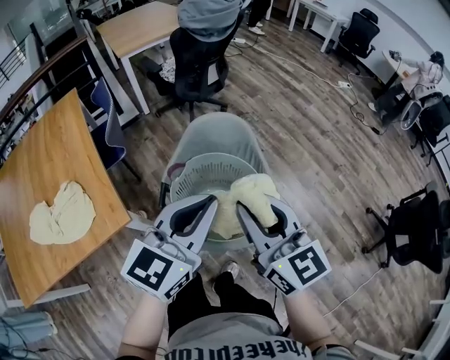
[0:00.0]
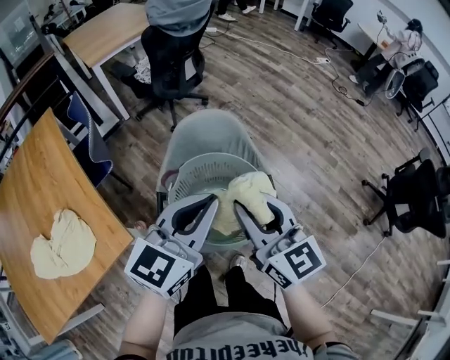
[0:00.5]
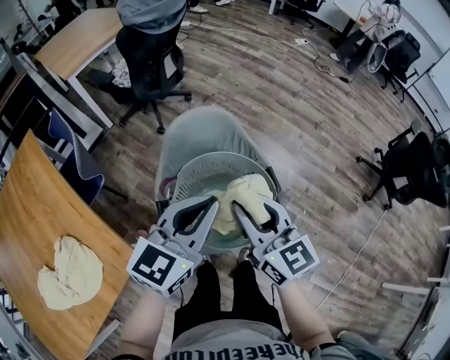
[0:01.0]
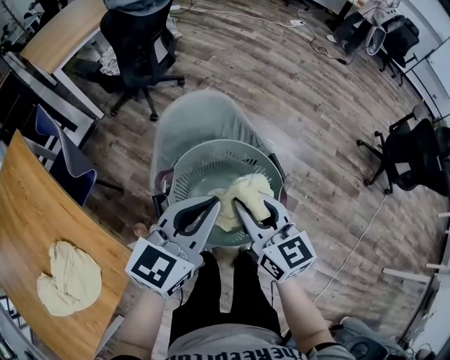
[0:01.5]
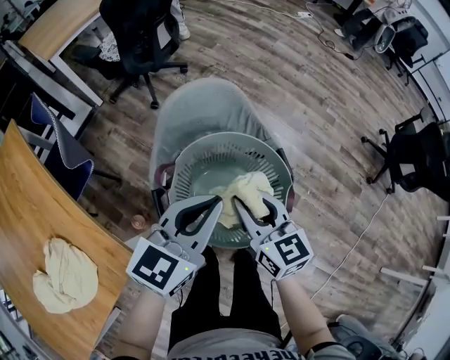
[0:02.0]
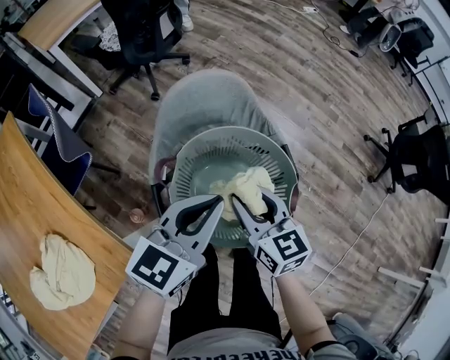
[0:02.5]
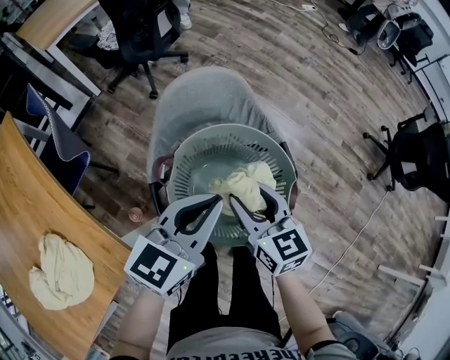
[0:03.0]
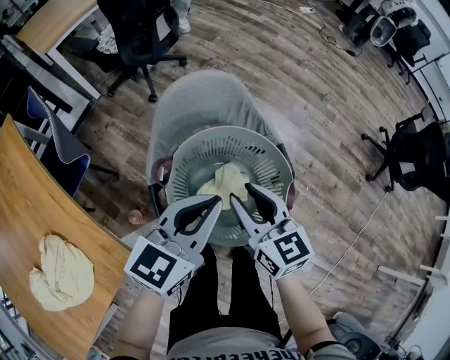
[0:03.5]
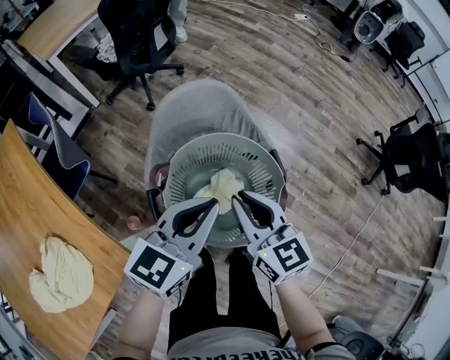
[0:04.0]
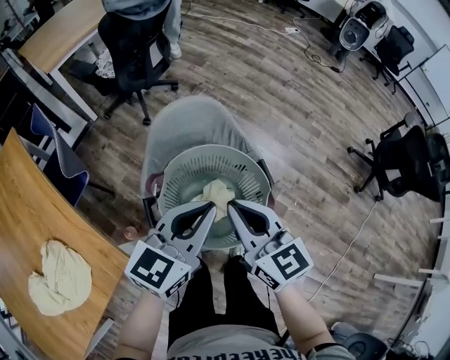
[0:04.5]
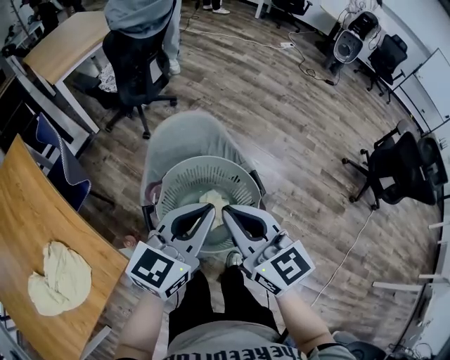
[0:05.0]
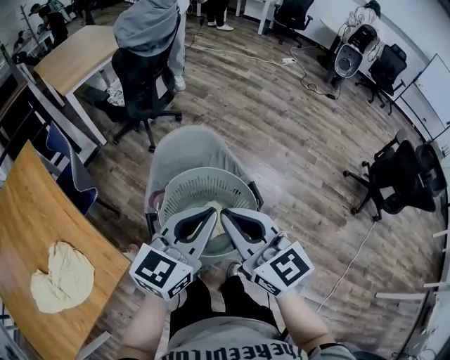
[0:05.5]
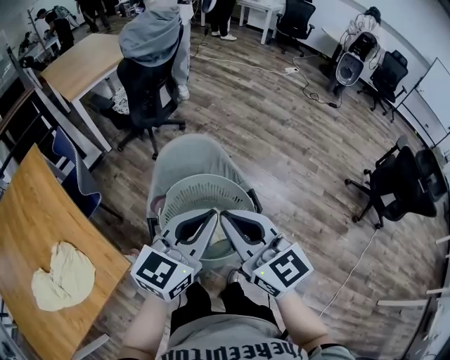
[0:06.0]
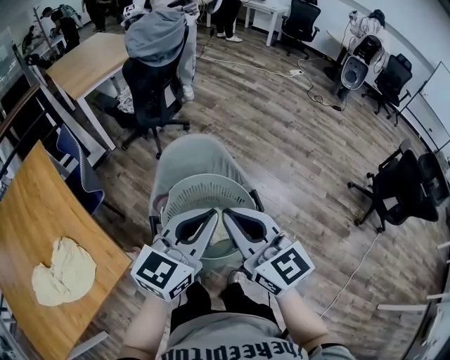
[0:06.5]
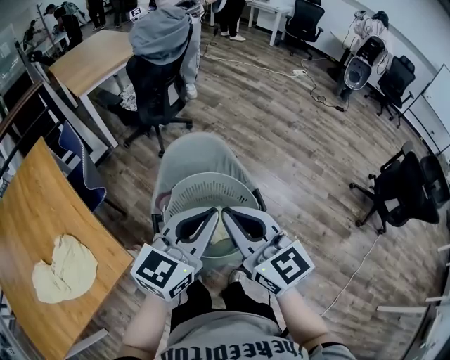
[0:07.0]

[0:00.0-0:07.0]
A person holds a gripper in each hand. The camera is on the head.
0:00.0 to 0:02.0: The right gripper heads downward, covering about 20 cm, and rotates about 30 degrees; the left gripper shifts approximately 15 cm downward and forward, and swivels about 30 degrees.
0:02.0 to 0:03.5: The grippers make only small movements.
0:03.5 to 0:05.0: The left gripper travels upward by approximately 10 cm. The right gripper moves upward, about 15 cm, and closes its fingers.
0:05.0 to 0:07.0: The two grippers go roughly 5 cm upward.

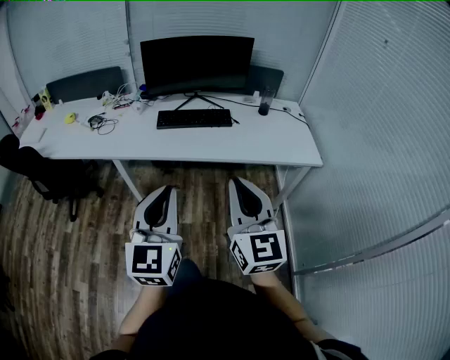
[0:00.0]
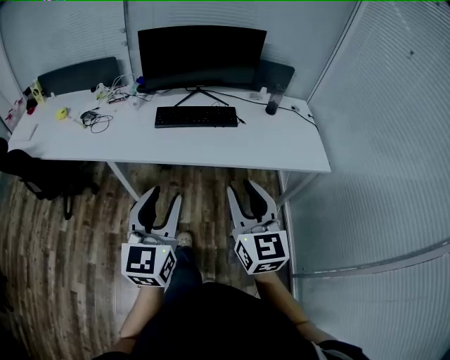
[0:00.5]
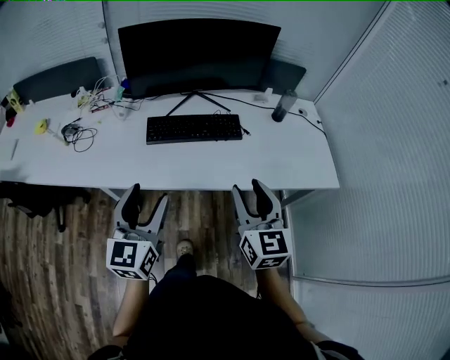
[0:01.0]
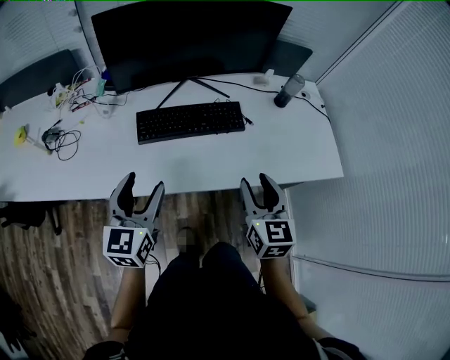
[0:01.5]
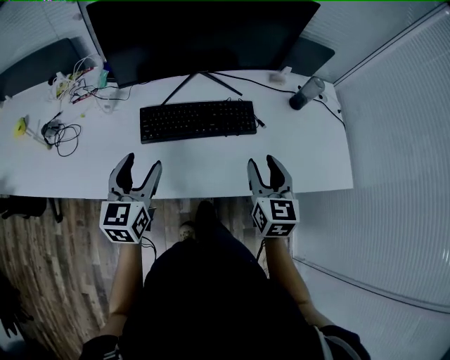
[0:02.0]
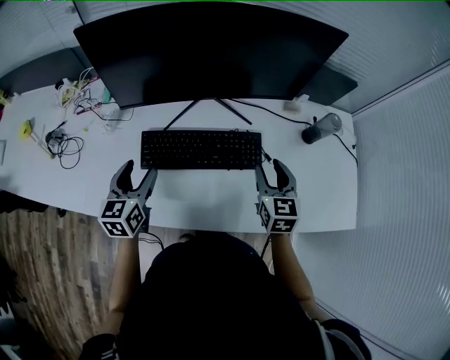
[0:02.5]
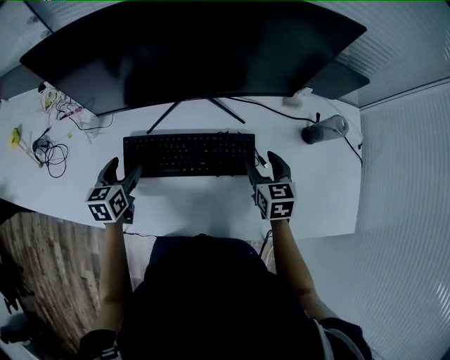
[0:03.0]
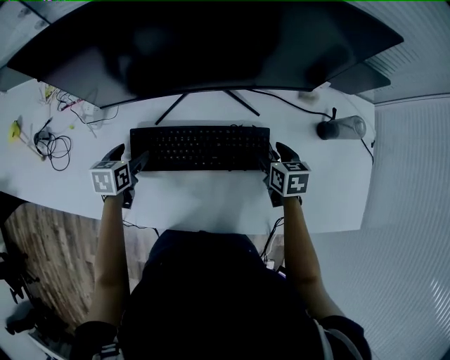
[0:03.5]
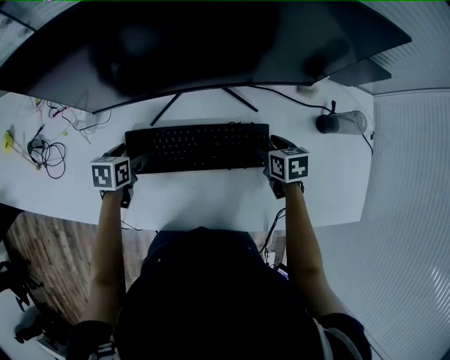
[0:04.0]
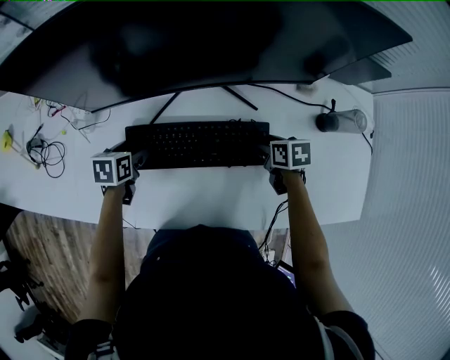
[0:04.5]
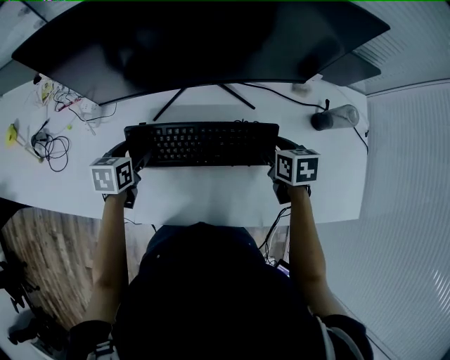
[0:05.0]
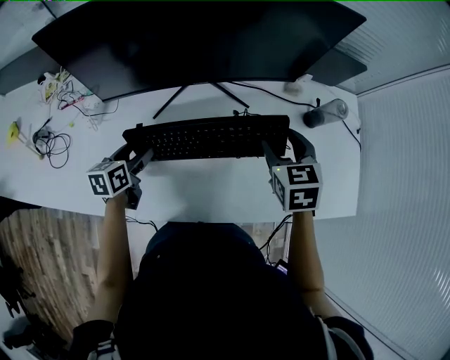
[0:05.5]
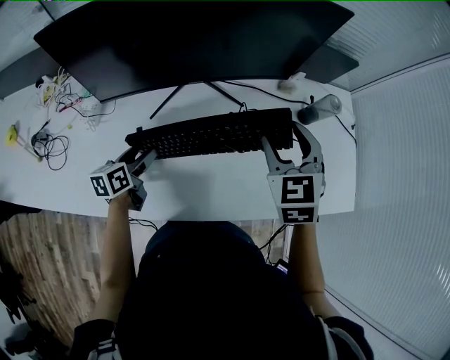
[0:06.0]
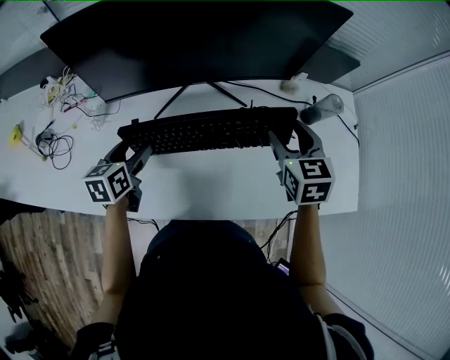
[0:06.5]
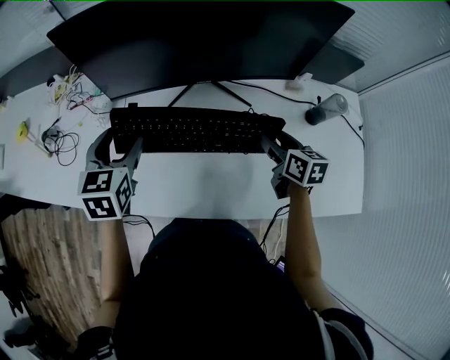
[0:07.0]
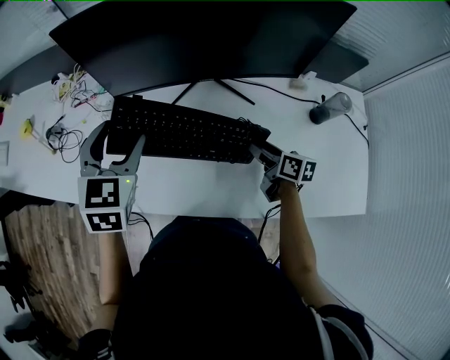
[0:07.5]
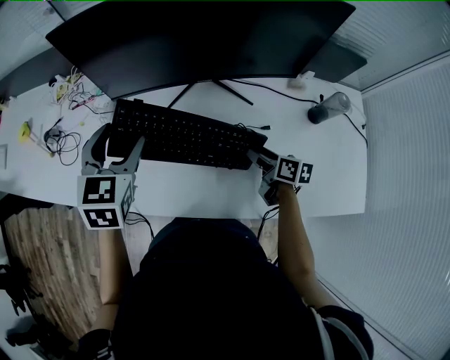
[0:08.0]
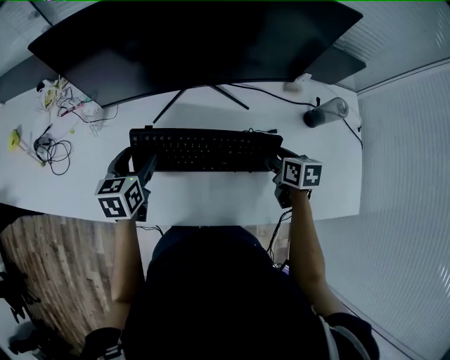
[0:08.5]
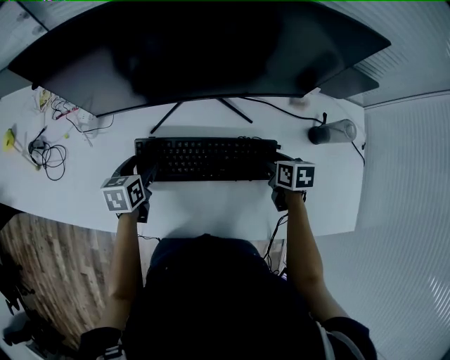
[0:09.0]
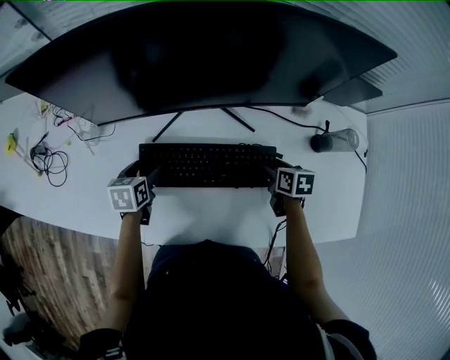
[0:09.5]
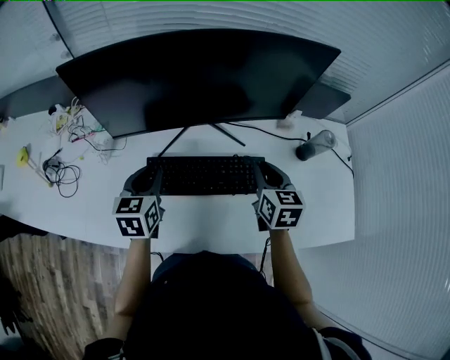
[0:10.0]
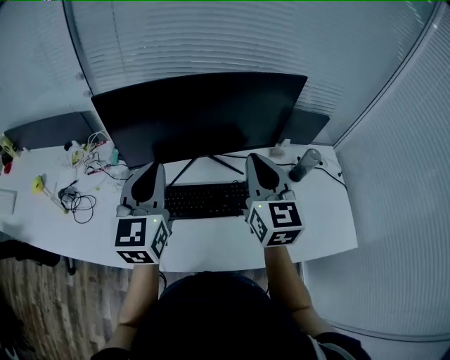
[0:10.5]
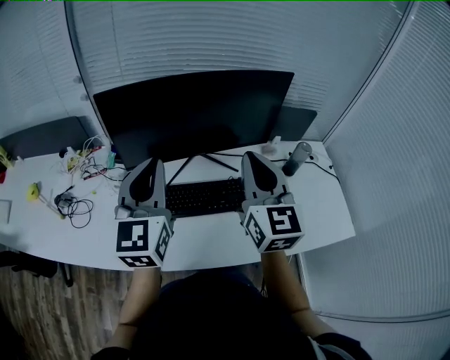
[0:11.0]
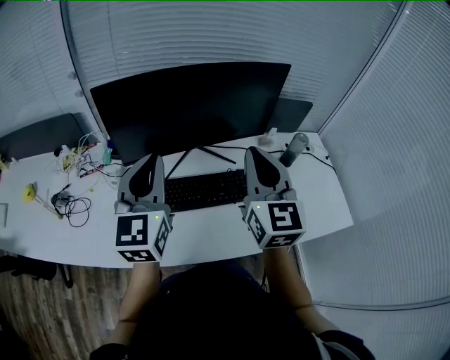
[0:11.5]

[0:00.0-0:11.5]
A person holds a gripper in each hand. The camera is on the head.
0:00.0 to 0:02.0: Both grippers are carried forward, about 50 cm. Both grippers travel together downward, roughly 20 cm. The left gripper swivels roughly 20 degrees, and opens; the right gripper changes its angle by roughly 30 degrees, and opens up.
0:02.0 to 0:04.0: The right gripper goes some 30 cm forward and downward, points its fingers about 40 degrees further downward, and opens up. The left gripper moves downward and forward, about 30 cm, and tips its fingers downward by approximately 40 degrees.
0:04.0 to 0:06.0: The right gripper heads upward, covering roughly 25 cm, and changes its angle by some 50 degrees. The left gripper goes approximately 10 cm upward and to the right, and turns by roughly 30 degrees.
0:06.0 to 0:07.5: The left gripper is displaced upward by about 20 cm, and rotates around the line of its fingers by about 50 degrees, clockwise from behind. The right gripper shifts roughly 20 cm downward, and twists about 60 degrees clockwise, seen from behind.
0:07.5 to 0:09.5: The right gripper travels downward and to the right by about 10 cm, and swivels roughly 30 degrees. Meanwhile the left gripper shifts about 30 cm downward, and rotates roughly 40 degrees.
0:09.5 to 0:11.5: The two grippers go some 40 cm upward. The left gripper angles its fingers upward, by approximately 50 degrees, and closes its fingers. Meanwhile the right gripper tips its fingers upward by about 60 degrees, and closes its fingers.

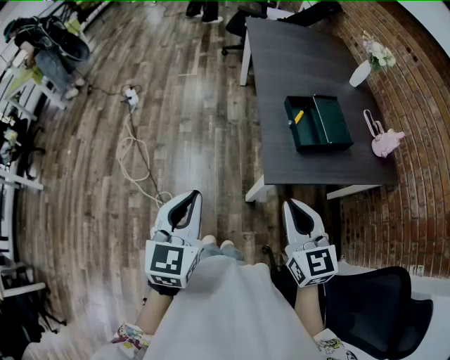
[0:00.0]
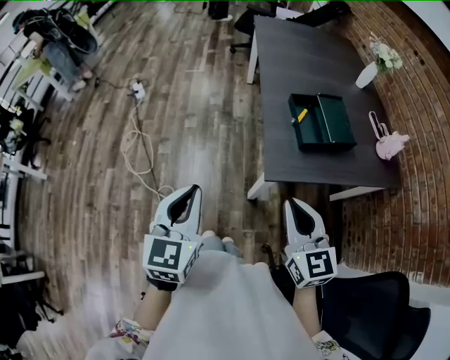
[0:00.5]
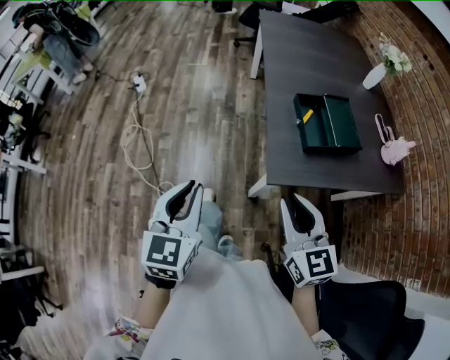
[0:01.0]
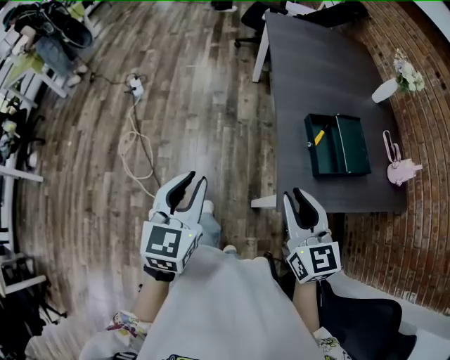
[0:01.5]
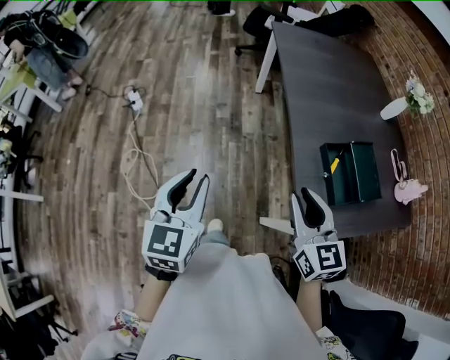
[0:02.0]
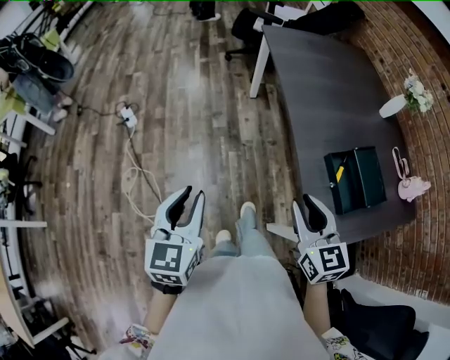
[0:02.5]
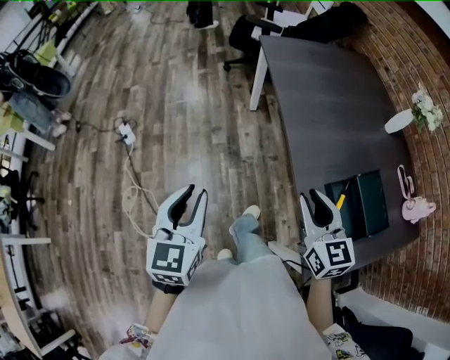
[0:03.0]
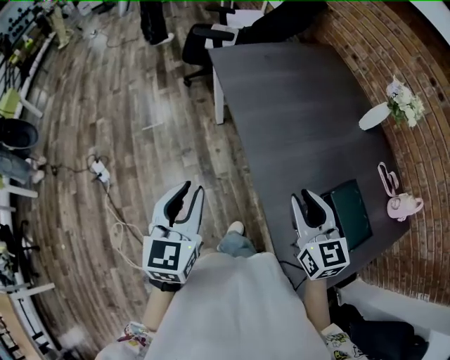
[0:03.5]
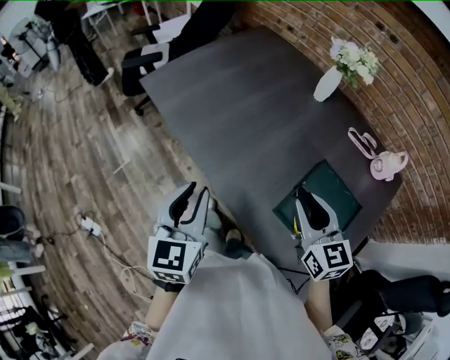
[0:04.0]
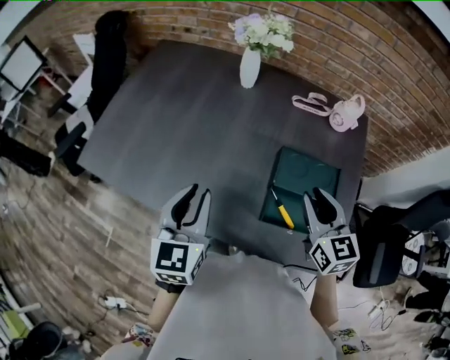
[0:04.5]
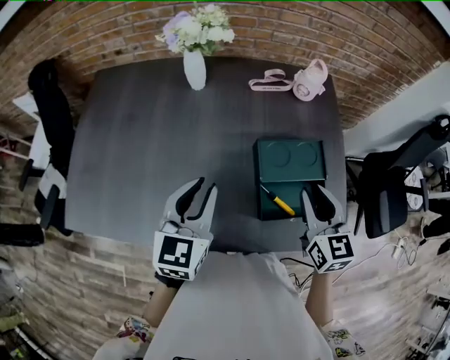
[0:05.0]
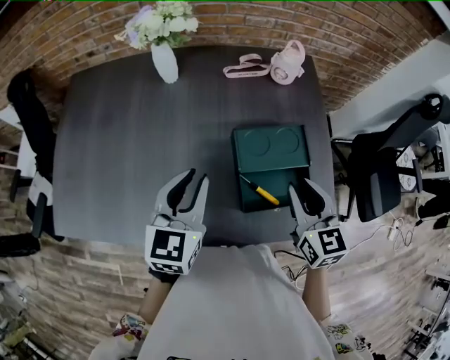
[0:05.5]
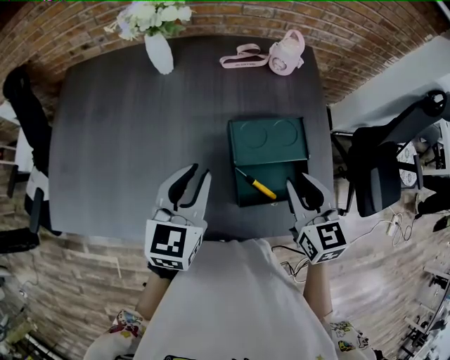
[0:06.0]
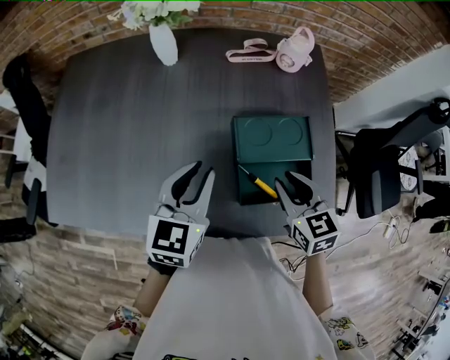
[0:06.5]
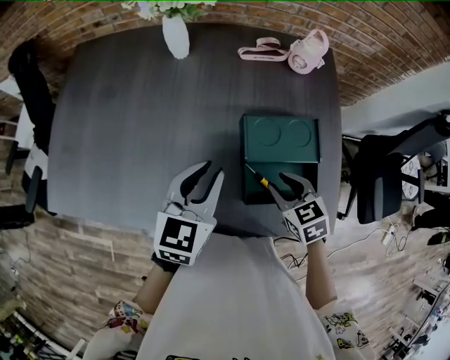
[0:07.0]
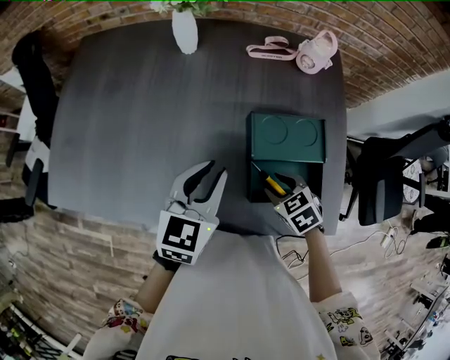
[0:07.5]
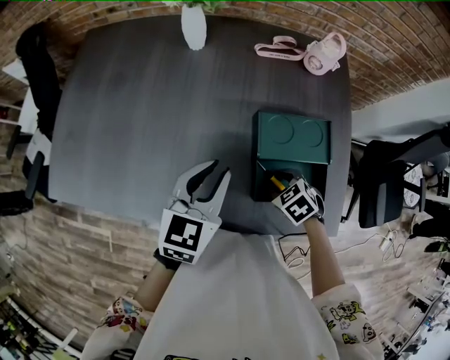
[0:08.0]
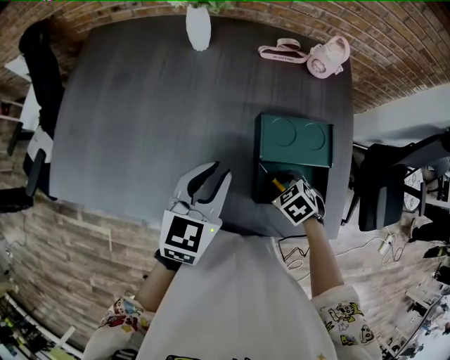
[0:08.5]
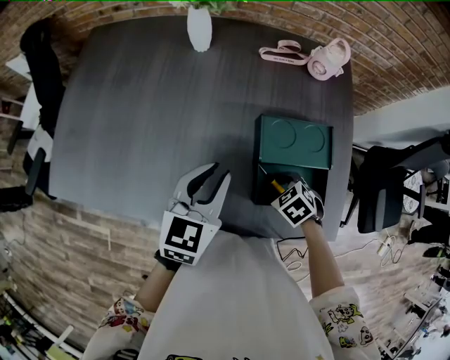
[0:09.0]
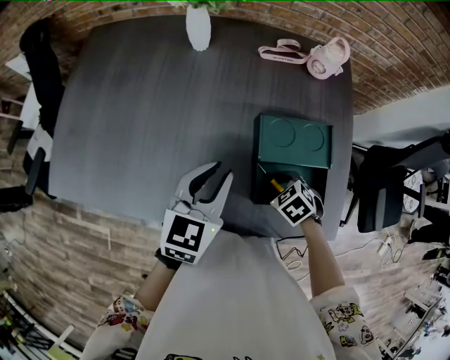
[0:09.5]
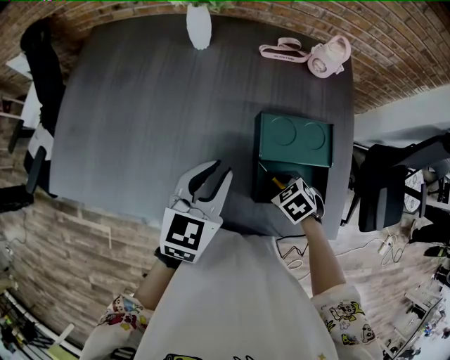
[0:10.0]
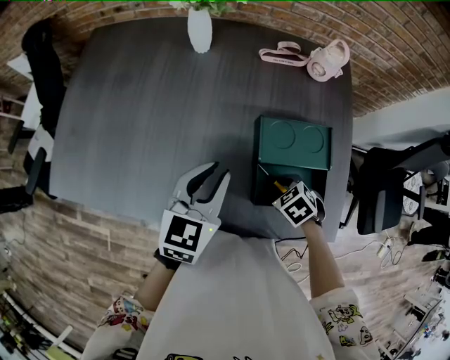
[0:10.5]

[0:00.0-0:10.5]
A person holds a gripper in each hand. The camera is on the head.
0:00.0 to 0:02.0: The right gripper heads forward, covering about 25 cm, and opens its fingers. The left gripper heads forward and to the left, covering some 25 cm.
0:02.0 to 0:04.0: The right gripper shifts by approximately 30 cm, and changes its angle by roughly 40 degrees; the left gripper moves roughly 40 cm, and swivels about 30 degrees.
0:04.0 to 0:06.5: The left gripper changes place by approximately 25 cm, and swivels roughly 60 degrees. The right gripper moves approximately 10 cm, and swivels roughly 40 degrees.
0:06.5 to 0:08.5: The right gripper goes roughly 15 cm downward, and tilts its fingers approximately 40 degrees downward.
0:08.5 to 0:10.5: The right gripper closes up.
